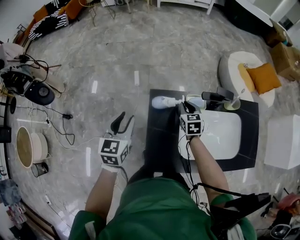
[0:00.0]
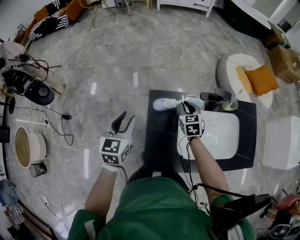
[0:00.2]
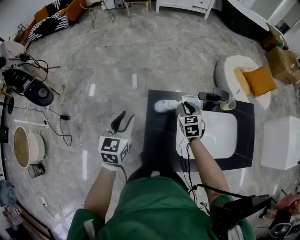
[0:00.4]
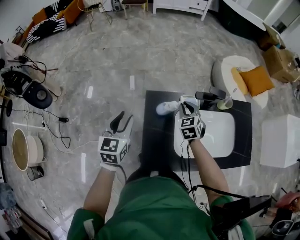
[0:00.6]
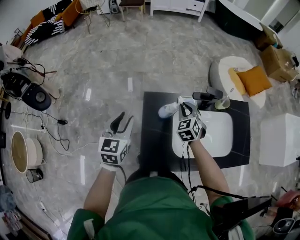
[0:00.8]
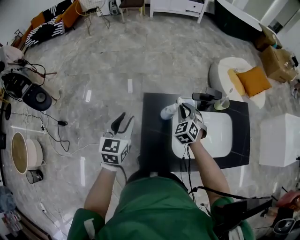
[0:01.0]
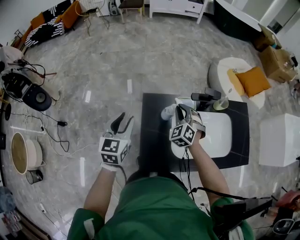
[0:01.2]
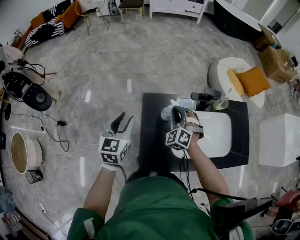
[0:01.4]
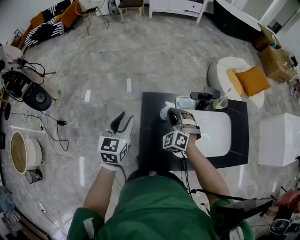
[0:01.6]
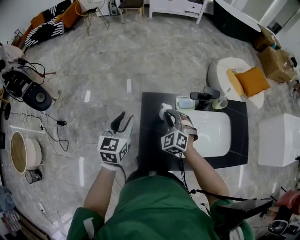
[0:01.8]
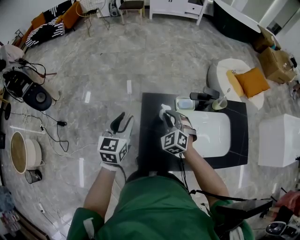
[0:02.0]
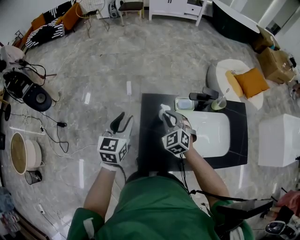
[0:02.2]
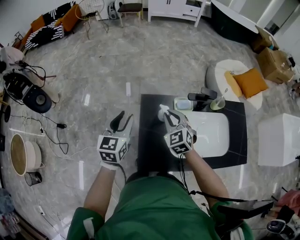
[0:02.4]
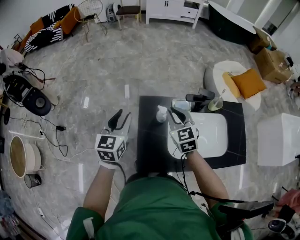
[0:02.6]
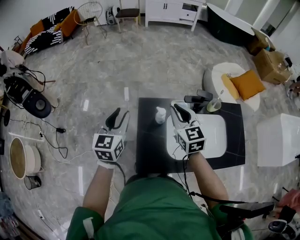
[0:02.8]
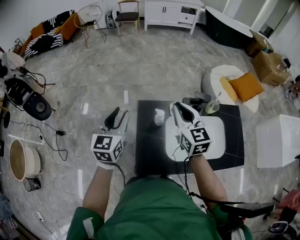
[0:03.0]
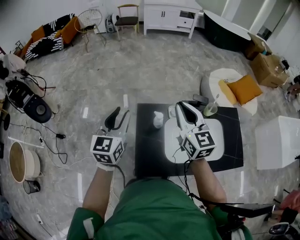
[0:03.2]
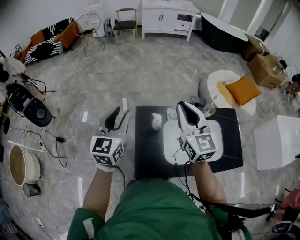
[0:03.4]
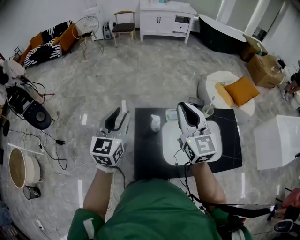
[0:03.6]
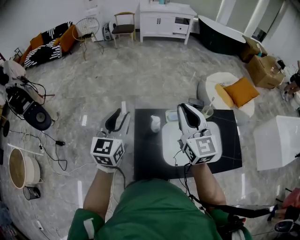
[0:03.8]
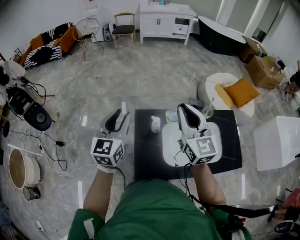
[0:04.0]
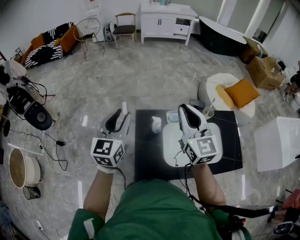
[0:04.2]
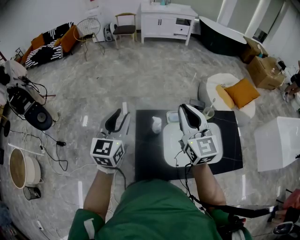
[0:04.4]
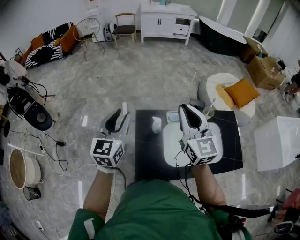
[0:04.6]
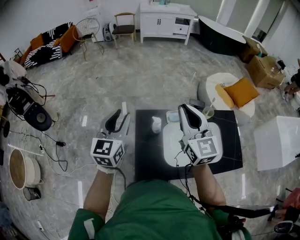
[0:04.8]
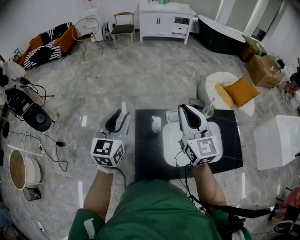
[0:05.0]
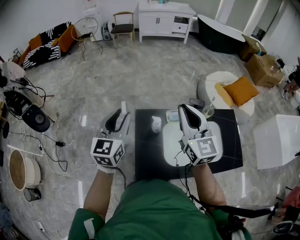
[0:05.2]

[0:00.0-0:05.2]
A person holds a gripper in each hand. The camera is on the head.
0:00.0 to 0:01.8: The right gripper shifts about 15 cm backward, upward and to the left, and rolls counterclockwise, seen from behind, by some 50 degrees; the left gripper changes place by about 5 cm.
0:01.8 to 0:03.4: The right gripper is displaced upward by roughly 25 cm, and tilts its fingers roughly 30 degrees upward. Meanwhile the left gripper heads upward, covering approximately 15 cm.
0:03.4 to 0:05.2: The grippers stay close to where they were, moving slightly.

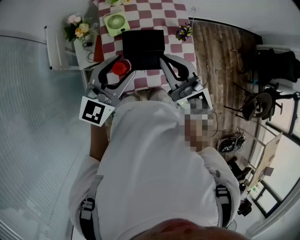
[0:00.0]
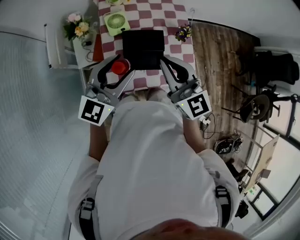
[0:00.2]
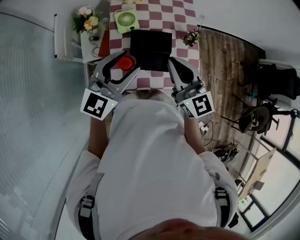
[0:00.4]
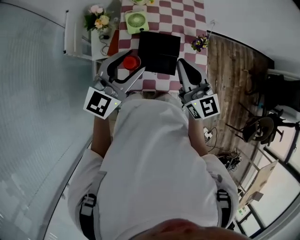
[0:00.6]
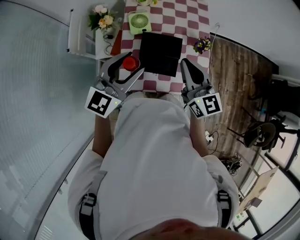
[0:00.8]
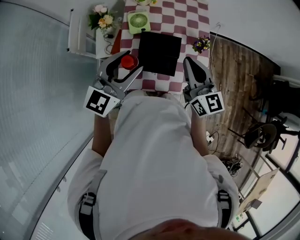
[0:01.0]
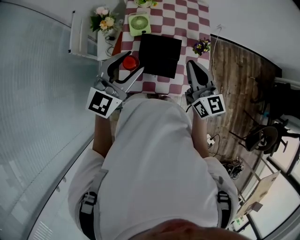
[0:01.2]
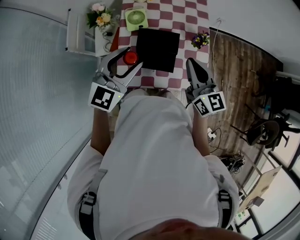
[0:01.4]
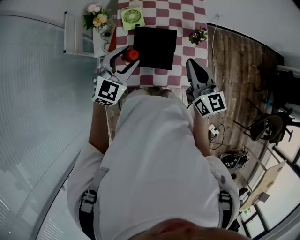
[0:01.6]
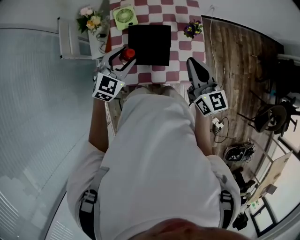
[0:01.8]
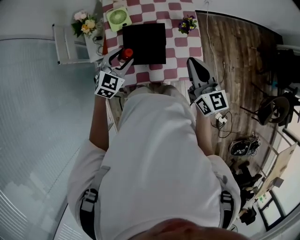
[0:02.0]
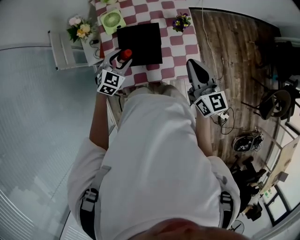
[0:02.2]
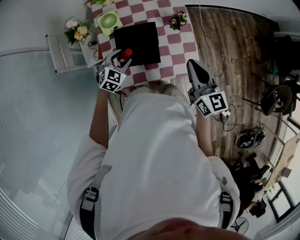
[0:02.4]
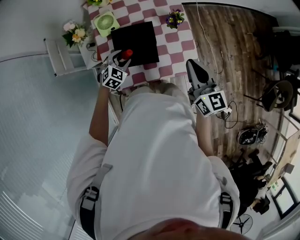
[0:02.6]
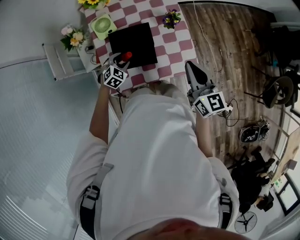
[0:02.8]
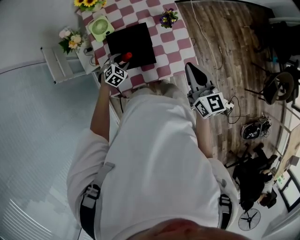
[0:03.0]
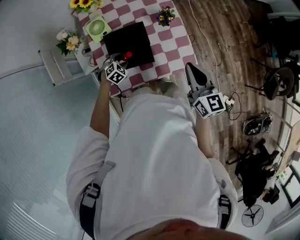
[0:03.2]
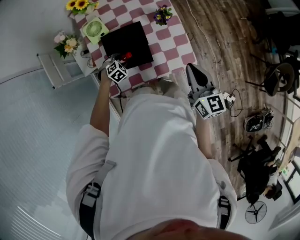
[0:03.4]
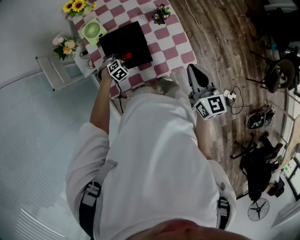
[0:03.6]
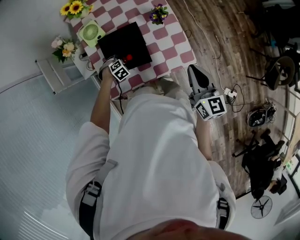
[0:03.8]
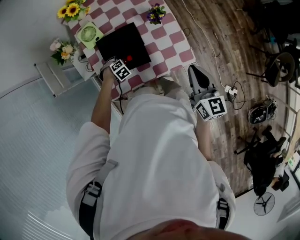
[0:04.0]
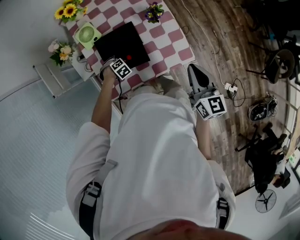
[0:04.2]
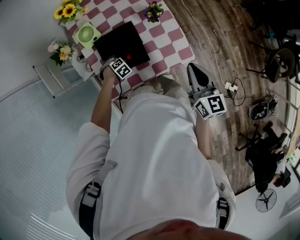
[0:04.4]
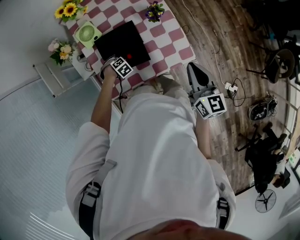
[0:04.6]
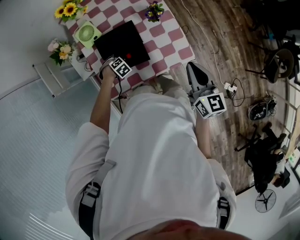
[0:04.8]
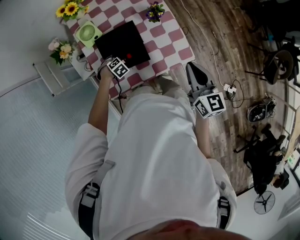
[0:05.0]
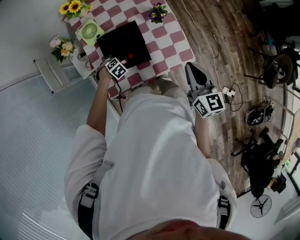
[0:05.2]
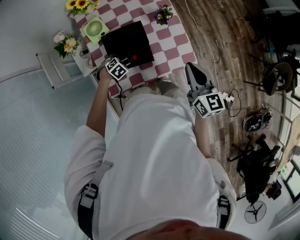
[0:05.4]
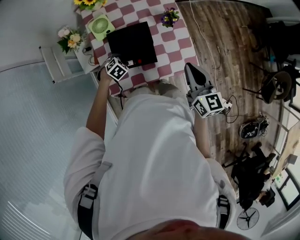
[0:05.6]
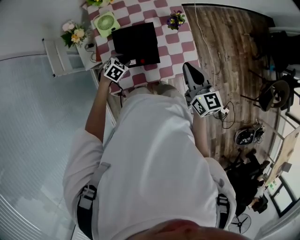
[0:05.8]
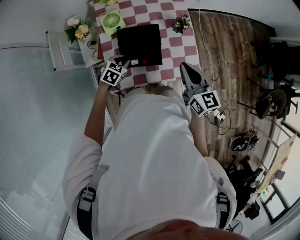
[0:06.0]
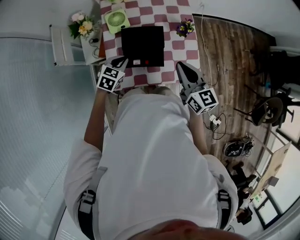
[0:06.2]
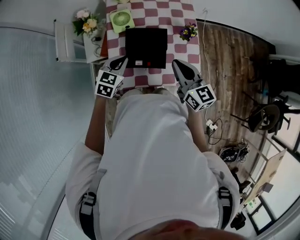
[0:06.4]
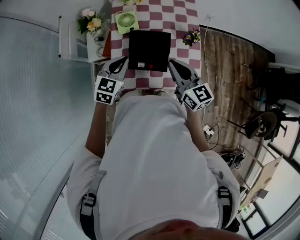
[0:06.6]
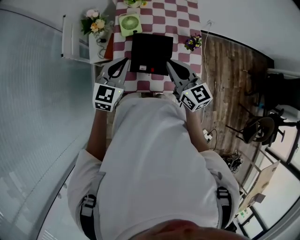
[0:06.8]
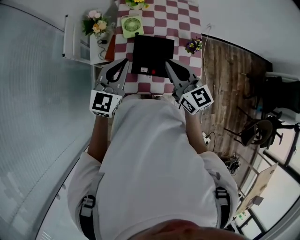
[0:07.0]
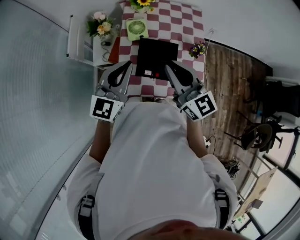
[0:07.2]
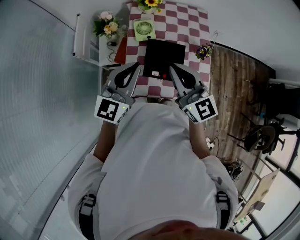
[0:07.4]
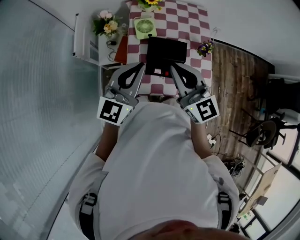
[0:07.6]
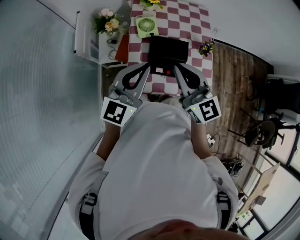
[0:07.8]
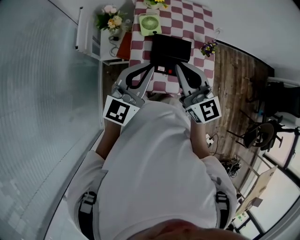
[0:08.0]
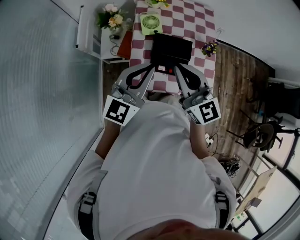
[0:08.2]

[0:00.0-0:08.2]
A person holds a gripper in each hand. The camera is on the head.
0:00.0 to 0:01.6: The left gripper shifts approximately 10 cm downward, and changes its angle by about 30 degrees. Meanwhile the right gripper heads to the right and downward, covering roughly 15 cm, and changes its angle by some 20 degrees.
0:01.6 to 0:03.2: The left gripper travels downward by approximately 30 cm, and tilts its fingers approximately 40 degrees downward. The right gripper goes roughly 15 cm to the right, downward and backward.
0:03.2 to 0:05.0: The left gripper heads downward, covering about 5 cm, and rotates some 20 degrees.
0:05.0 to 0:06.6: The left gripper is displaced upward by approximately 30 cm, points its fingers some 50 degrees further upward, and closes its fingers. Meanwhile the right gripper ends up about 20 cm from where it was, and changes its angle by roughly 30 degrees.
0:06.6 to 0:08.2: The left gripper heads upward, covering roughly 15 cm, and angles its fingers upward, by approximately 30 degrees. Meanwhile the right gripper shifts about 15 cm to the left and upward.

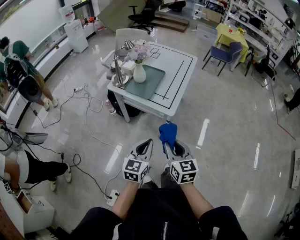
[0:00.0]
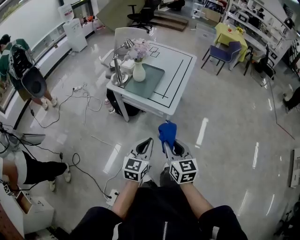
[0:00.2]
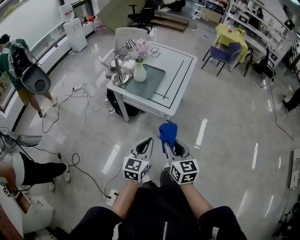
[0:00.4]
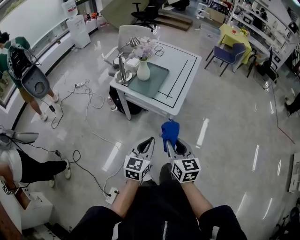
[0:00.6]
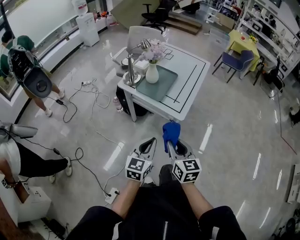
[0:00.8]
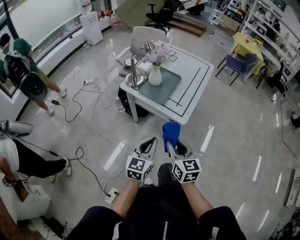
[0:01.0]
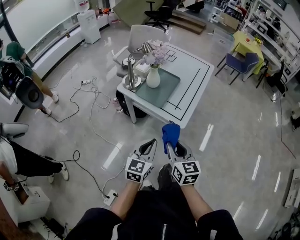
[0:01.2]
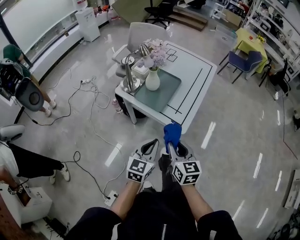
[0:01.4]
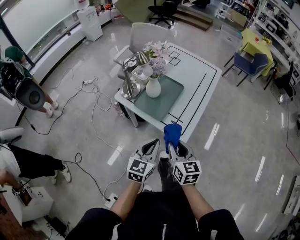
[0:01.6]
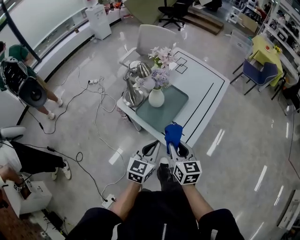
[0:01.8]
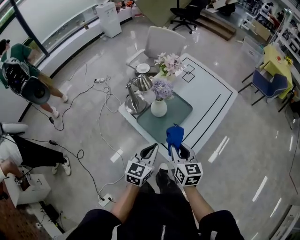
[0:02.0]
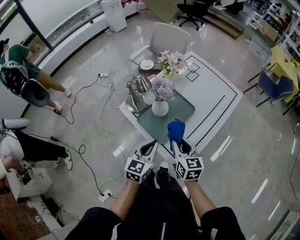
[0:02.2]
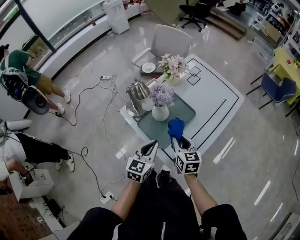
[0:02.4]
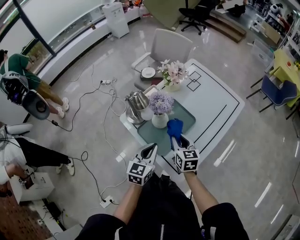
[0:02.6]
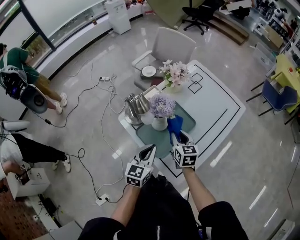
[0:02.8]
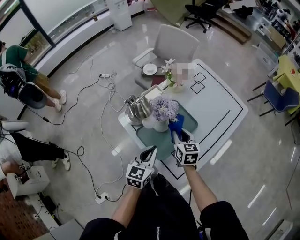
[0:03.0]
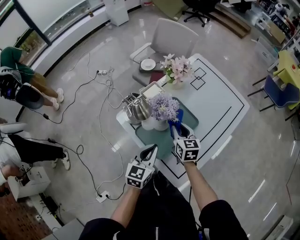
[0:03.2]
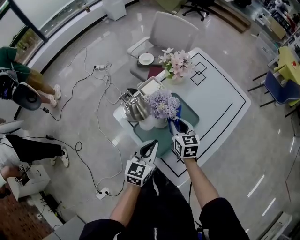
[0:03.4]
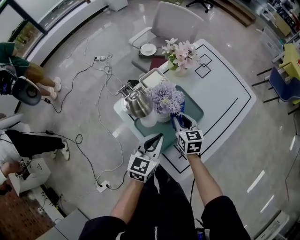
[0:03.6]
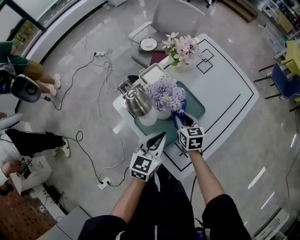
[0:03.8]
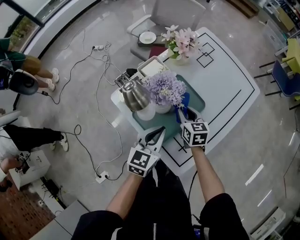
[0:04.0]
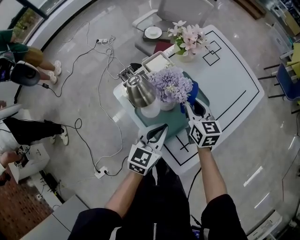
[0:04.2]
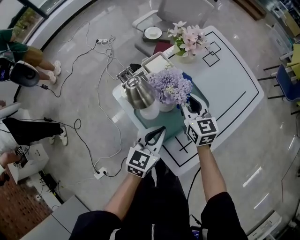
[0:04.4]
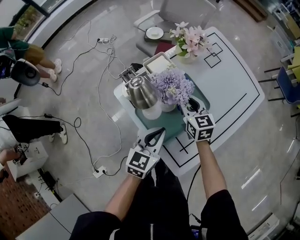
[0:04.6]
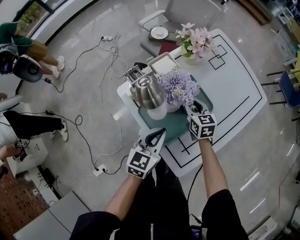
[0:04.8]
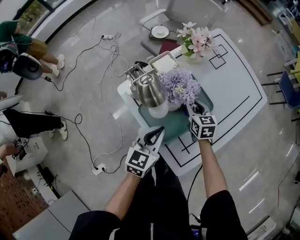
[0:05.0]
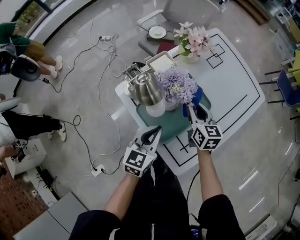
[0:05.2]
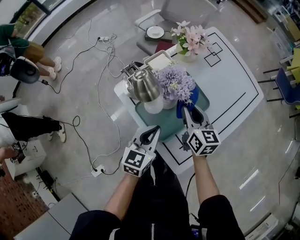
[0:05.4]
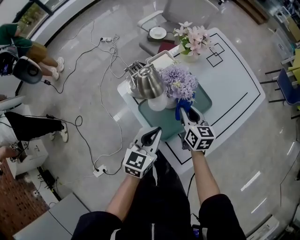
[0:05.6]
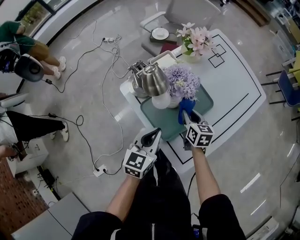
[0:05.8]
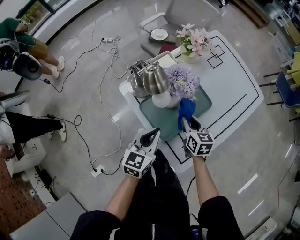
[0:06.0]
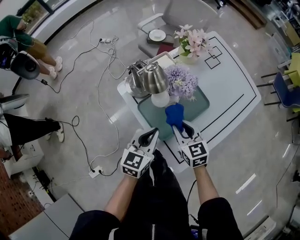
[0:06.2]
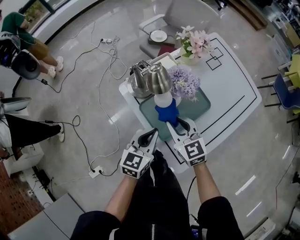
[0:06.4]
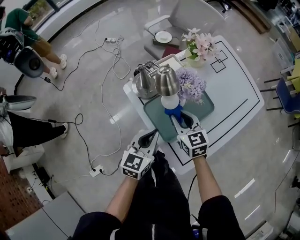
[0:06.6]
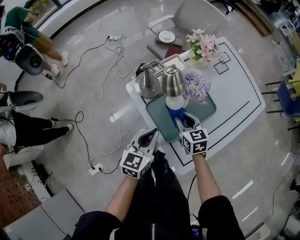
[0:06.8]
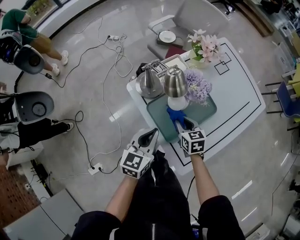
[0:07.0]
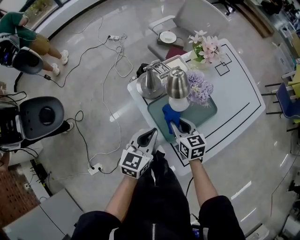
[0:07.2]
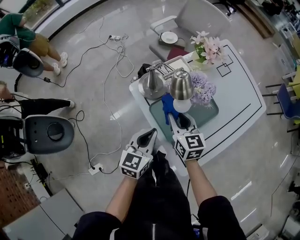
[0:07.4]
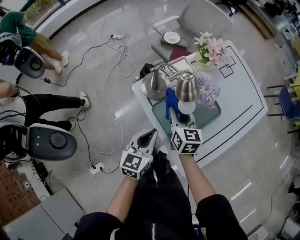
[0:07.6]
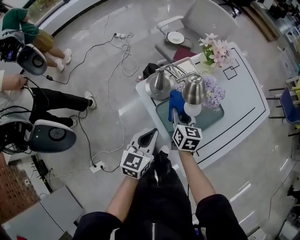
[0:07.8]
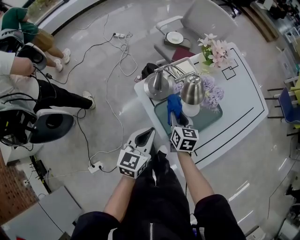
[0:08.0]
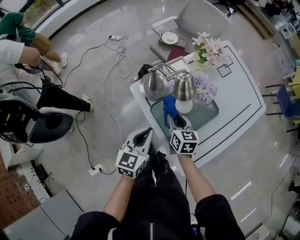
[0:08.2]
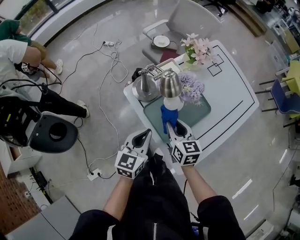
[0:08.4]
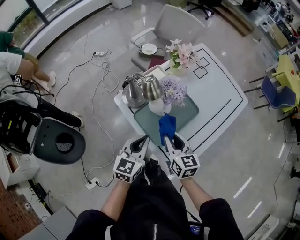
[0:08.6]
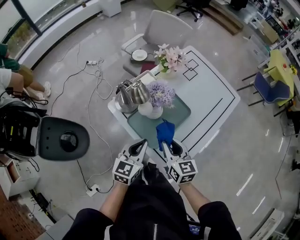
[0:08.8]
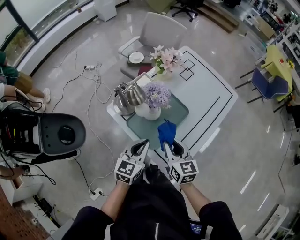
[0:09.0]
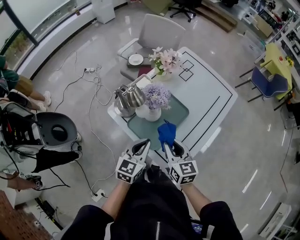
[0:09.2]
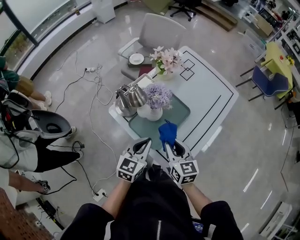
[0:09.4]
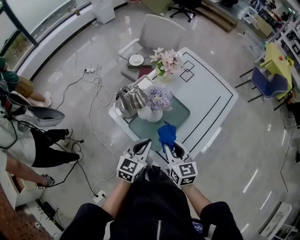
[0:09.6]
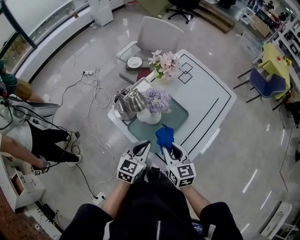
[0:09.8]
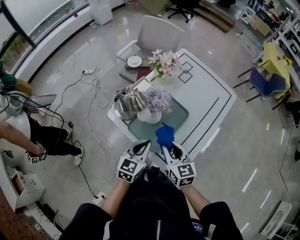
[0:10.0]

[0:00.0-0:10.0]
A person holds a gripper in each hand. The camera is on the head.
0:00.0 to 0:01.4: Both grippers travel together forward, some 15 cm.
0:01.4 to 0:02.8: The grippers both shift forward by roughly 35 cm. The left gripper swivels roughly 20 degrees.
0:02.8 to 0:04.2: The right gripper goes some 10 cm forward, and reaches some 10 cm downward, then returns; the left gripper shifts by about 5 cm.
0:04.2 to 0:05.8: The left gripper moves roughly 5 cm. Meanwhile the right gripper swings up and down, approximately 10 cm each way, with 2 reversals.
0:05.8 to 0:07.2: The right gripper moves up and down over some 10 cm, changing direction 2 times, and rotates some 20 degrees. Meanwhile the left gripper goes roughly 5 cm to the left.
0:07.2 to 0:08.6: The right gripper heads upward, covering roughly 10 cm.
0:08.6 to 0:10.0: The grippers move only a little.
